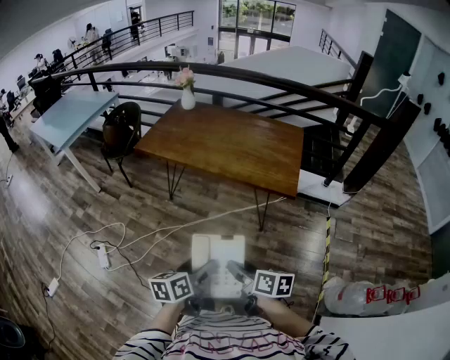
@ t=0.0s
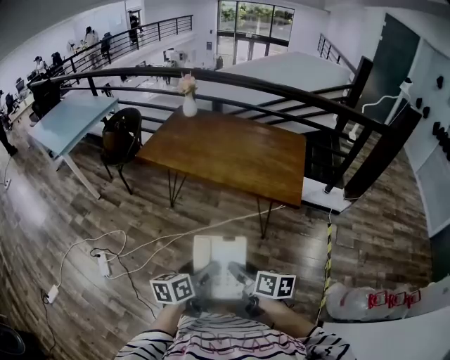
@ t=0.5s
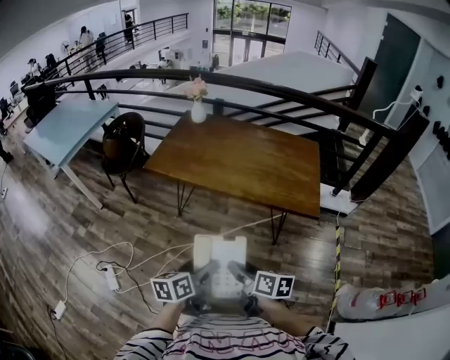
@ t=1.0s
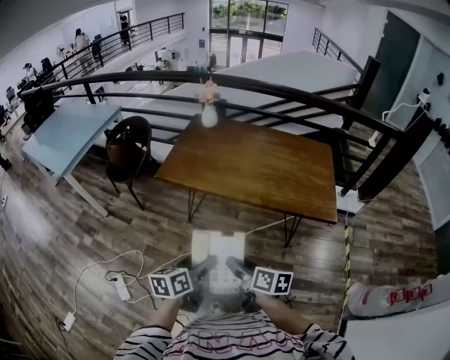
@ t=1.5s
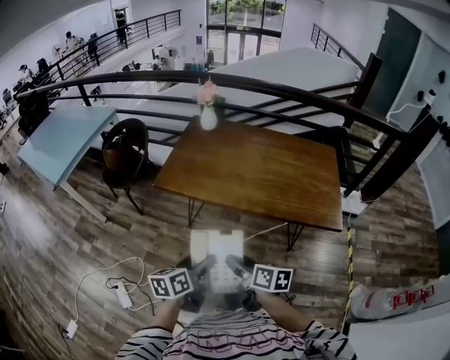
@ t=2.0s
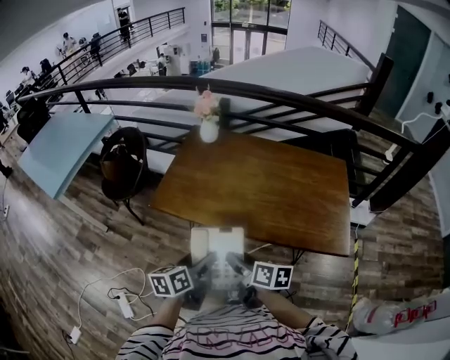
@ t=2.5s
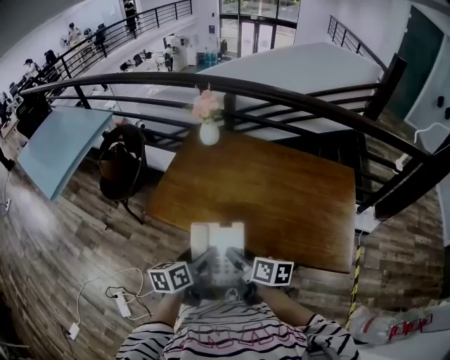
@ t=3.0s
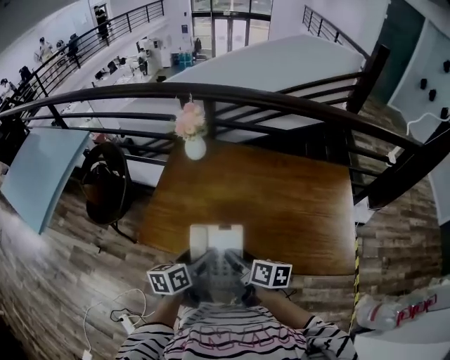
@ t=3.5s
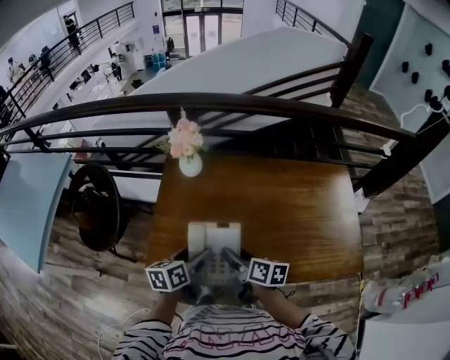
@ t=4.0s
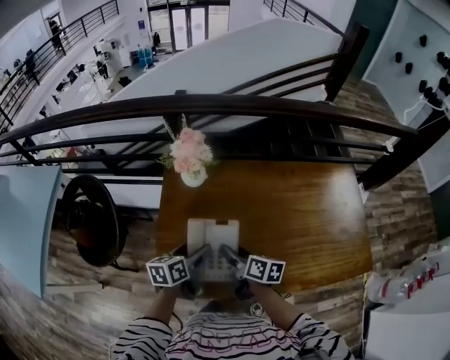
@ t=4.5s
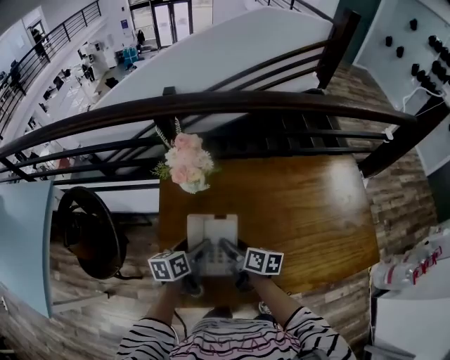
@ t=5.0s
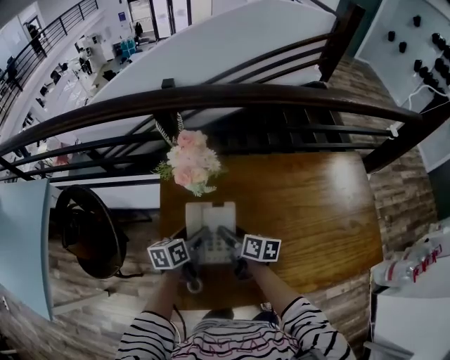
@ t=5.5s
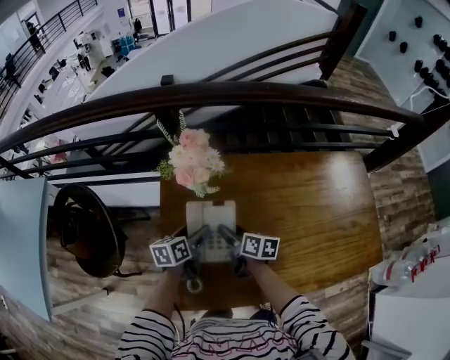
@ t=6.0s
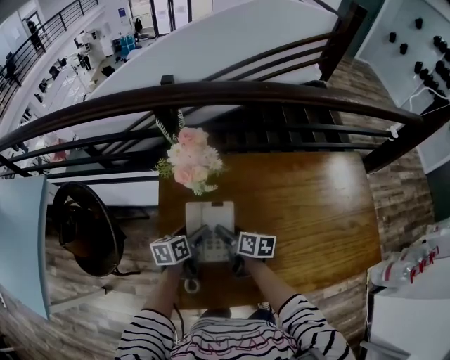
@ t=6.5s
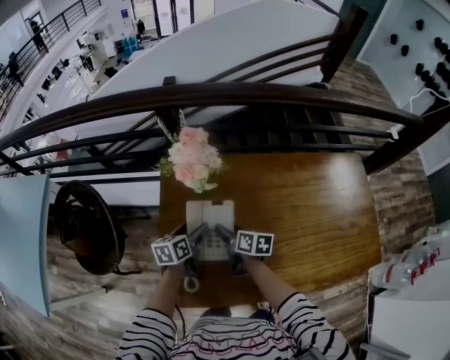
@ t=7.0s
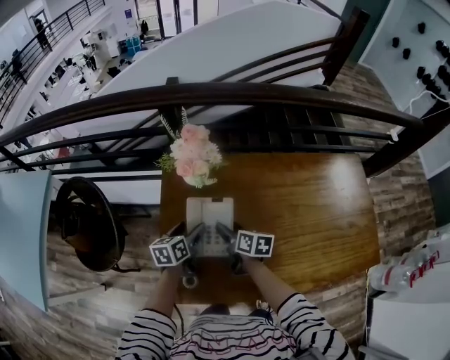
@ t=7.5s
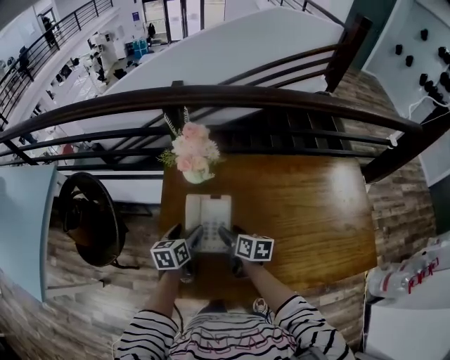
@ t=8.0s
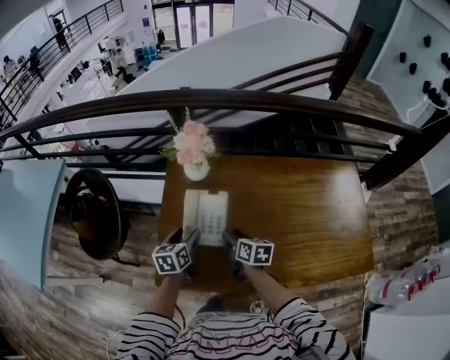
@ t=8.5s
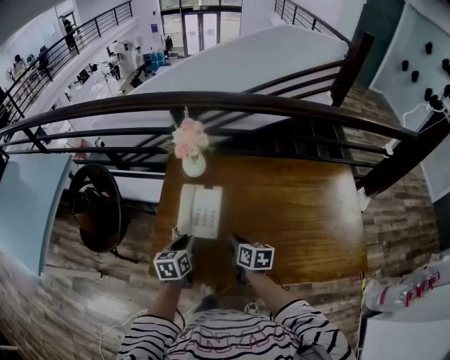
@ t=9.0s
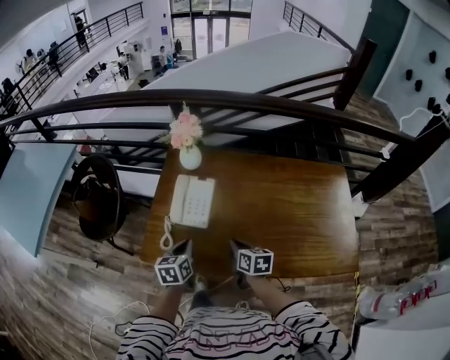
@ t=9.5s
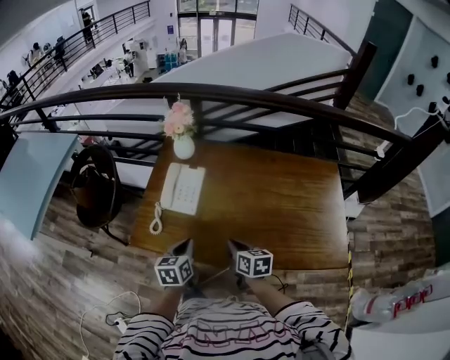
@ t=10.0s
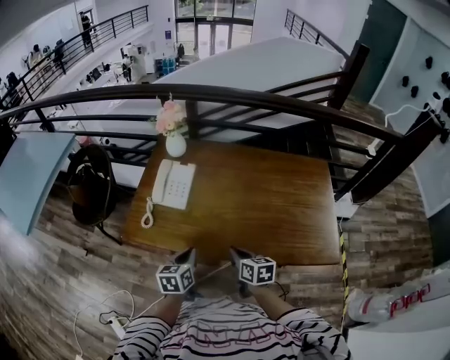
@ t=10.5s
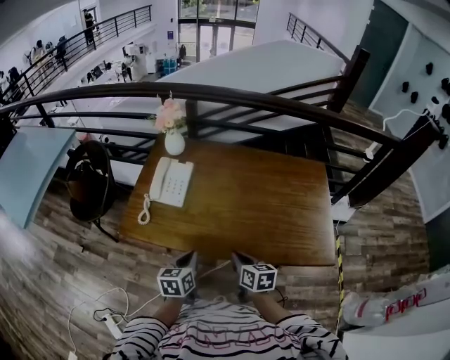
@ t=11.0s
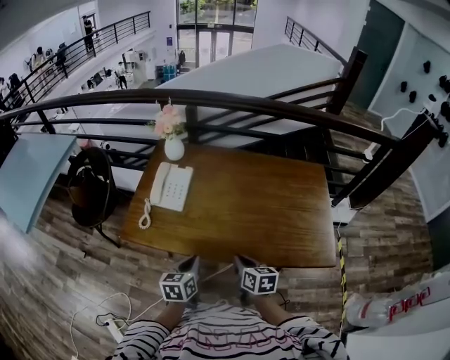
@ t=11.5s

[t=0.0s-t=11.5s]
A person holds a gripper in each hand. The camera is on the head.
t=0.0s to t=2.0s: Both grippers are carried forward and to the left, some 40 cm.
t=2.0s to t=4.0s: Both grippers are carried forward, some 50 cm.
t=4.0s to t=6.0s: The grippers both shift forward, downward and to the left by some 30 cm.
t=6.0s to t=7.5s: The grippers stay close to where they were, moving slightly.
t=7.5s to t=9.5s: The right gripper moves backward and to the right, some 25 cm, and closes its fingers, while the left gripper heads backward, covering approximately 25 cm, and closes.
t=9.5s to t=11.5s: The two grippers go approximately 25 cm backward and to the right.

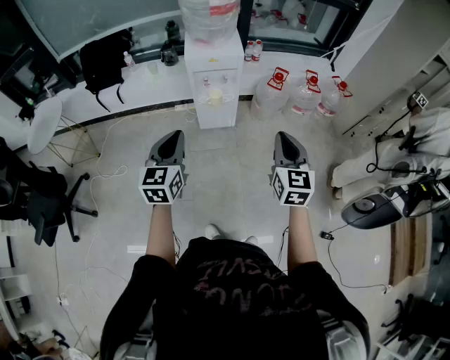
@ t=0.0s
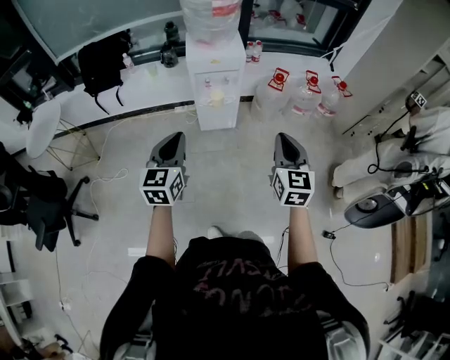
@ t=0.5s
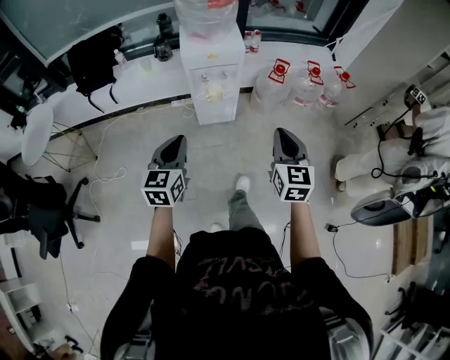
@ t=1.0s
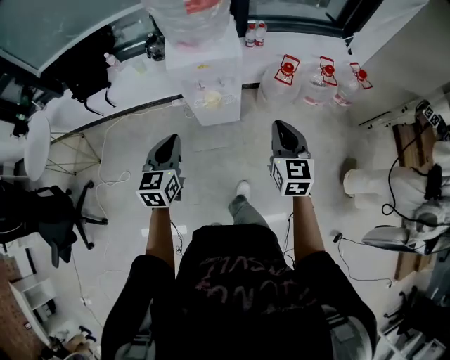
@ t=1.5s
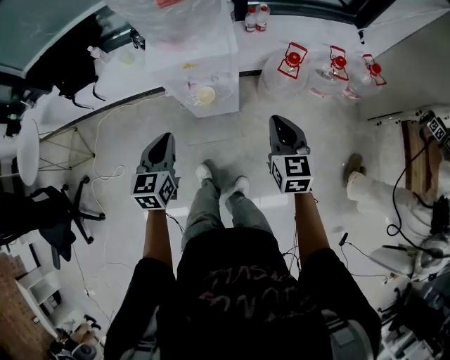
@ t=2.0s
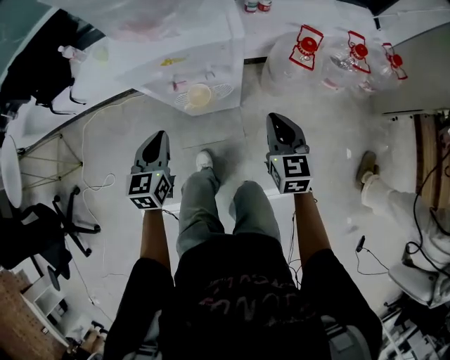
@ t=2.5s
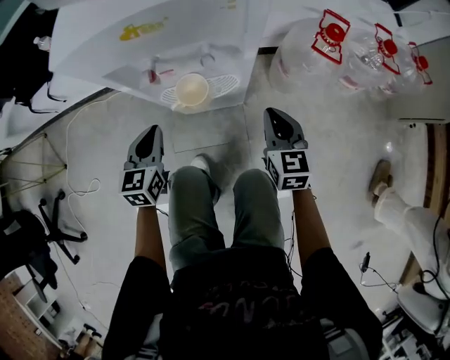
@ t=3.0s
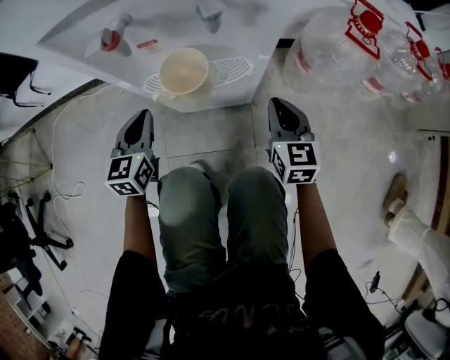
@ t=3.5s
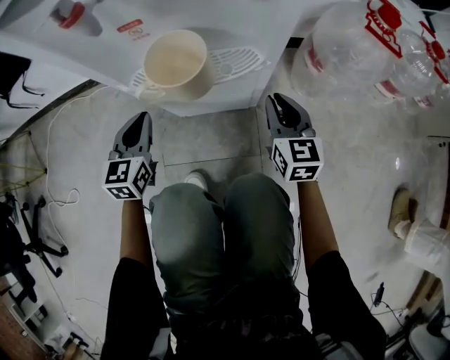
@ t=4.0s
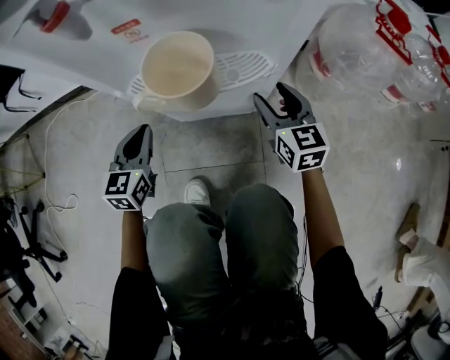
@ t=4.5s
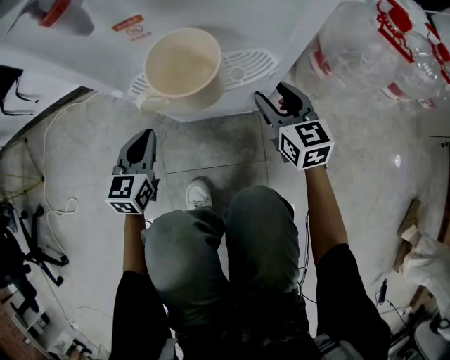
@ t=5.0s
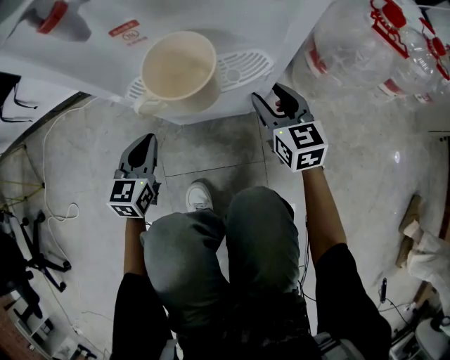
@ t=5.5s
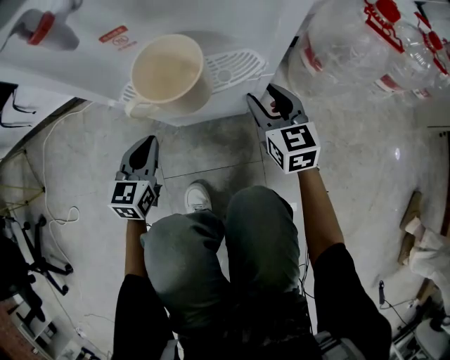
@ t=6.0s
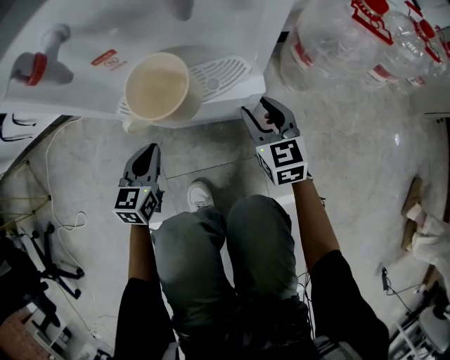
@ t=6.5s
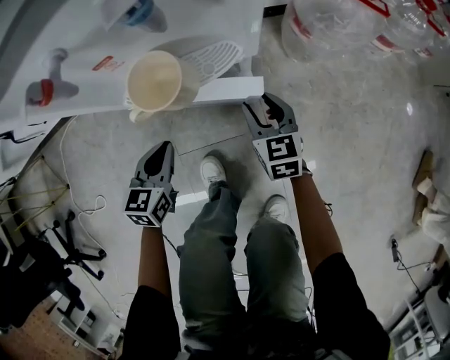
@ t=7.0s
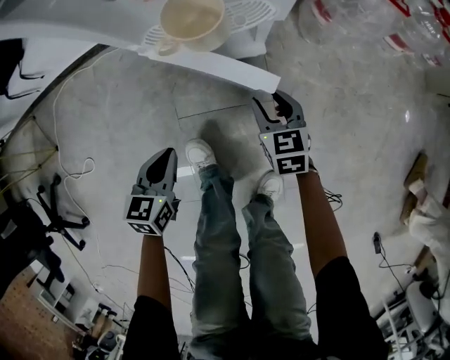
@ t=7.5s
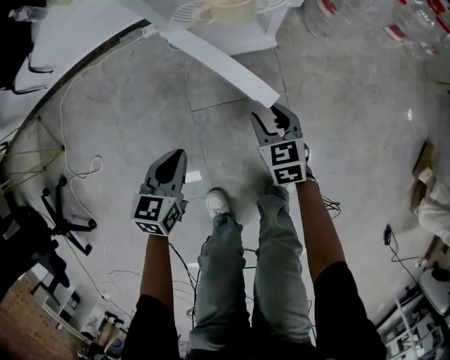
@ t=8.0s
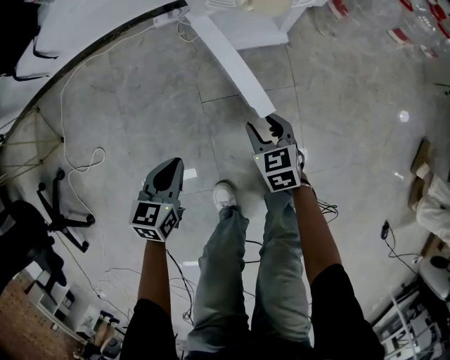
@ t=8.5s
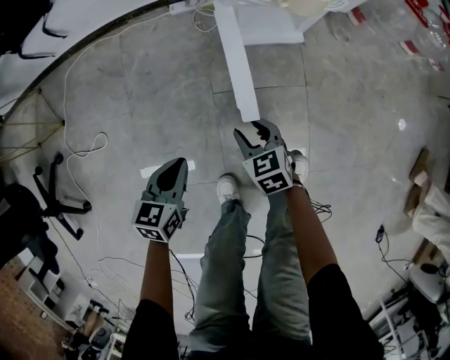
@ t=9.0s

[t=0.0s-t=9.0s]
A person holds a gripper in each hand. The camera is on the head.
t=0.0s to t=2.0s: Both grippers move forward and downward, some 35 cm.
t=2.0s to t=4.5s: The two grippers go some 60 cm downward. The right gripper opens up.
t=4.5s to t=7.0s: The left gripper moves backward and to the right, about 10 cm. Meanwhile the right gripper goes roughly 10 cm backward.
t=7.0s to t=9.0s: The grippers both shift backward and to the left by approximately 35 cm. The right gripper swivels roughly 30 degrees.

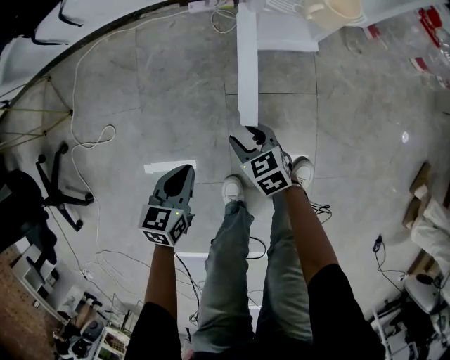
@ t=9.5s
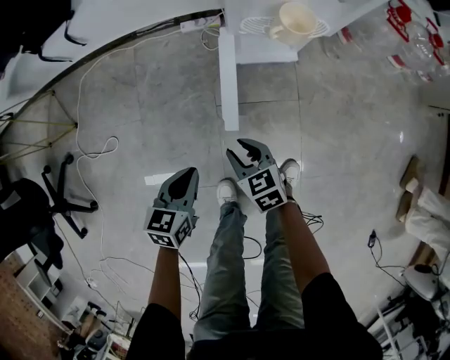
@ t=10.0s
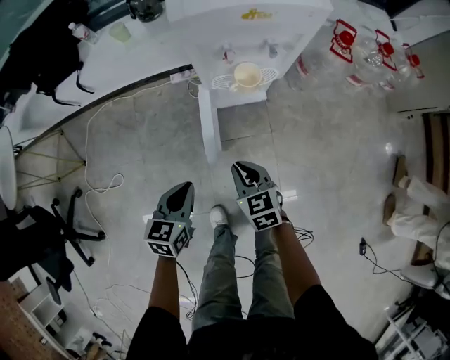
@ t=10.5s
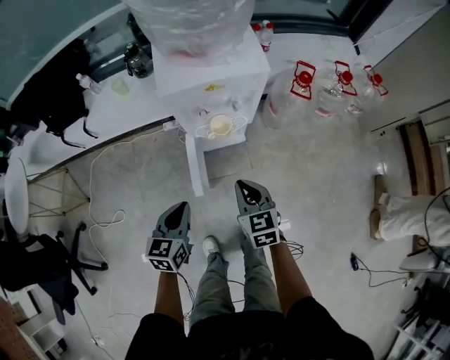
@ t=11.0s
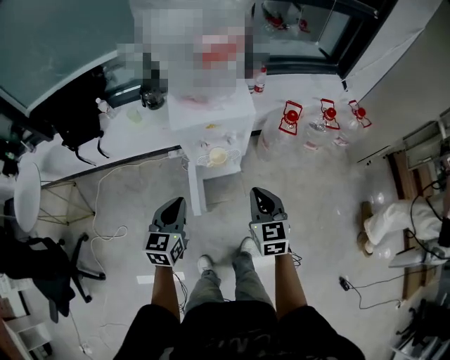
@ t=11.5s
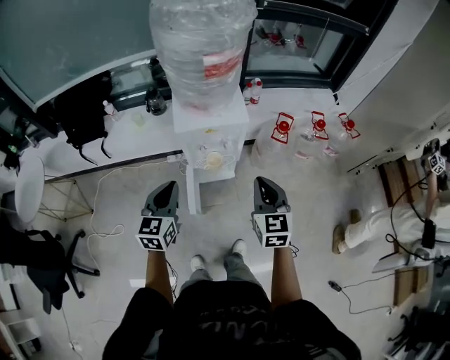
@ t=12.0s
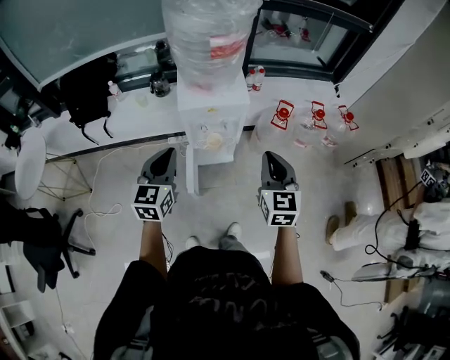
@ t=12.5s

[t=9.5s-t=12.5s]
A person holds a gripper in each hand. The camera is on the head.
t=9.5s to t=11.0s: Both grippers move upward and to the right, approximately 40 cm. The right gripper rotates about 30 degrees, and closes up.
t=11.0s to t=12.5s: The grippers both shift upward by roughly 30 cm. The left gripper swivels approximately 20 degrees. The right gripper turns by approximately 20 degrees.

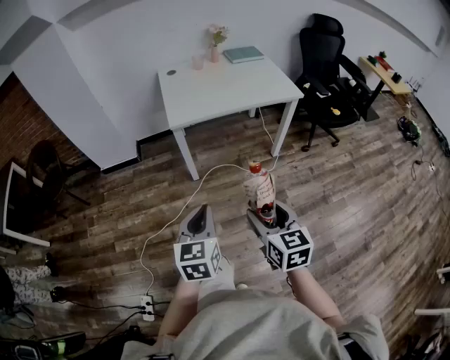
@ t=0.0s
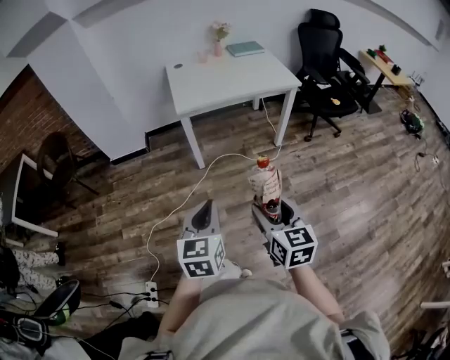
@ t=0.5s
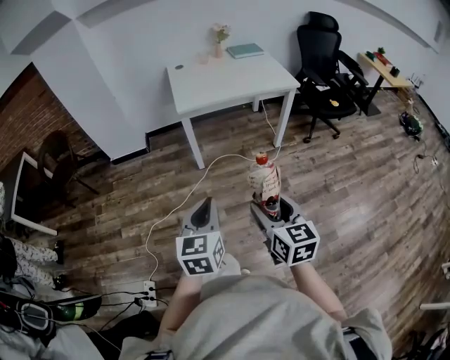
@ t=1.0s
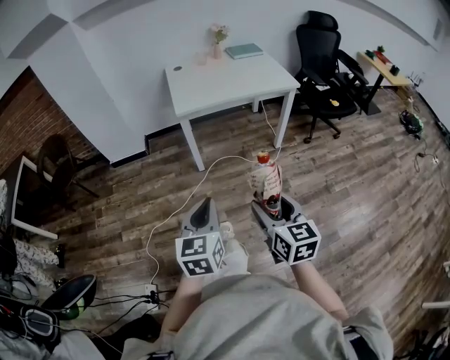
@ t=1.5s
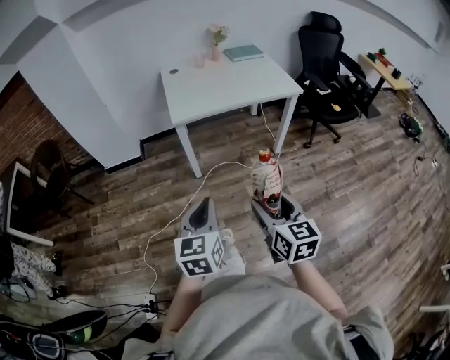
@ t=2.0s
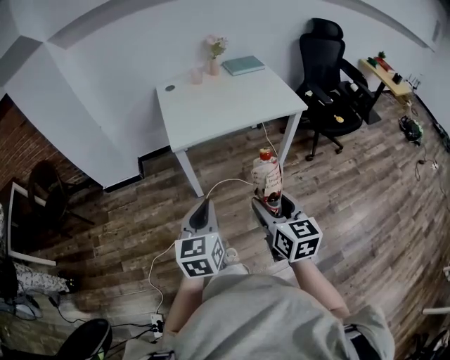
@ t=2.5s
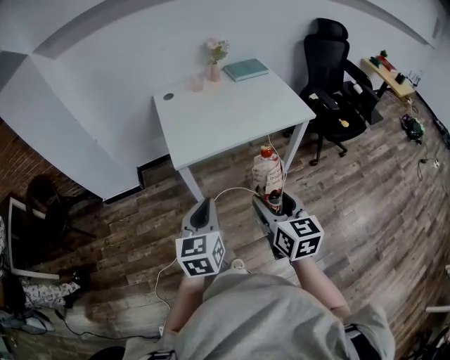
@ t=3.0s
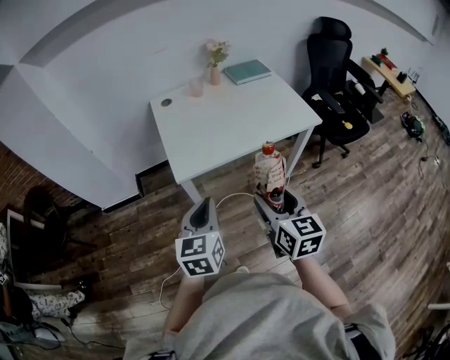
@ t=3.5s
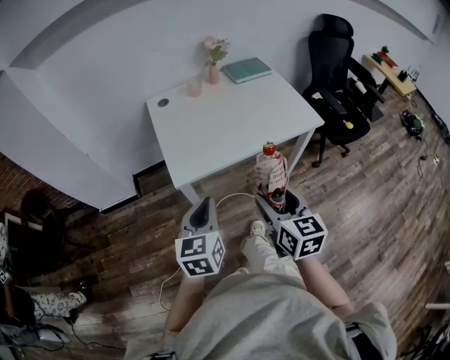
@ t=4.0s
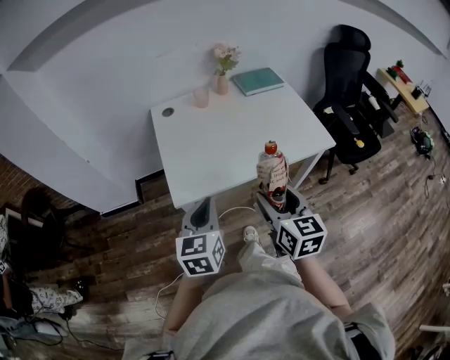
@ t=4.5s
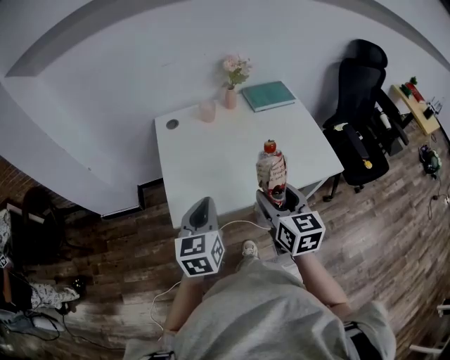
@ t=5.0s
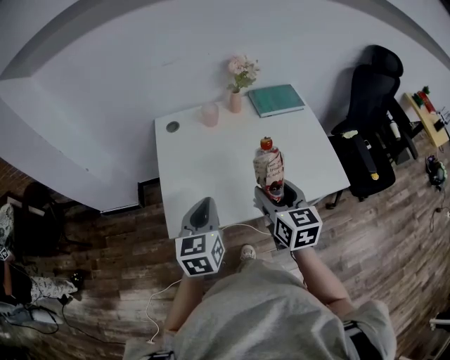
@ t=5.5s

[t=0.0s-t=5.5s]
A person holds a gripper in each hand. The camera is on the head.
t=0.0s to t=2.0s: The right gripper travels backward and back again, about 10 cm each way. Meanwhile the left gripper goes backward and returns, about 10 cm each way.
t=2.0s to t=3.5s: Both grippers travel together forward, roughly 35 cm.
t=3.5s to t=5.5s: The grippers both shift forward by approximately 30 cm.
